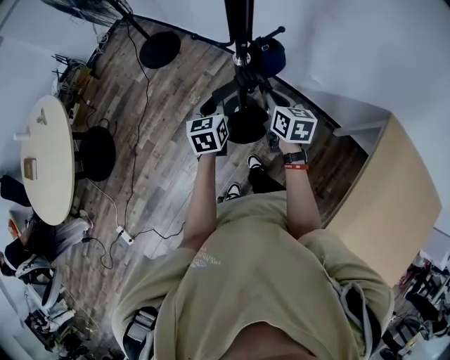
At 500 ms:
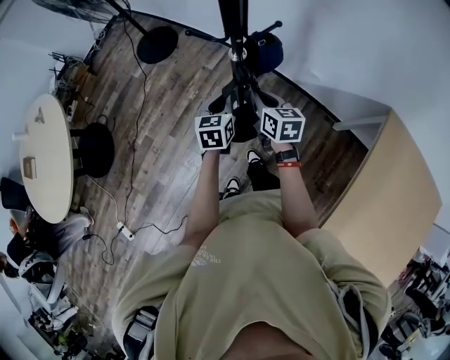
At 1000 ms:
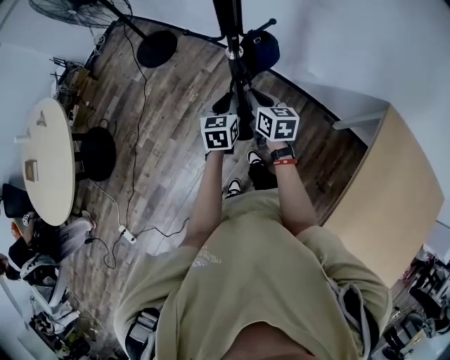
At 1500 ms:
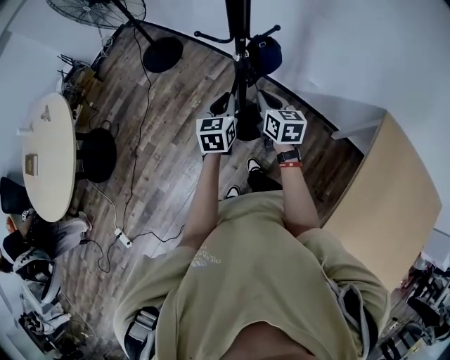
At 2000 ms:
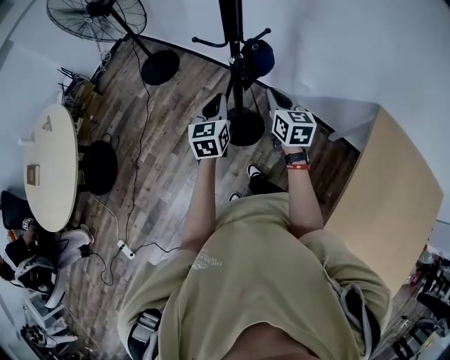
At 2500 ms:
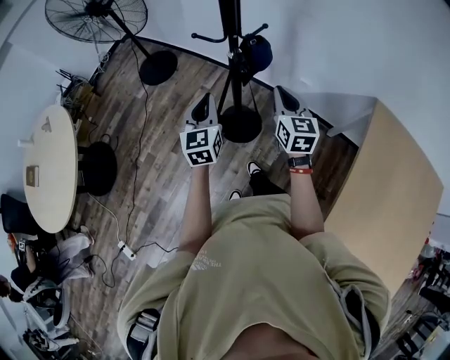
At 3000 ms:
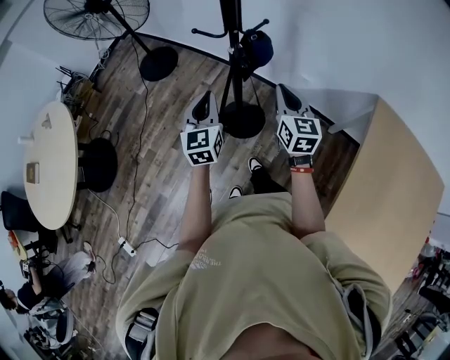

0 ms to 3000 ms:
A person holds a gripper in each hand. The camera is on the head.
0 ms to 1500 ms: The left gripper shifts by roughly 5 cm.
1500 ms to 3000 ms: The right gripper shifts about 15 cm upward, backward and to the right, and changes its angle by roughly 20 degrees. The left gripper is displaced upward, backward and to the left by about 15 cm.

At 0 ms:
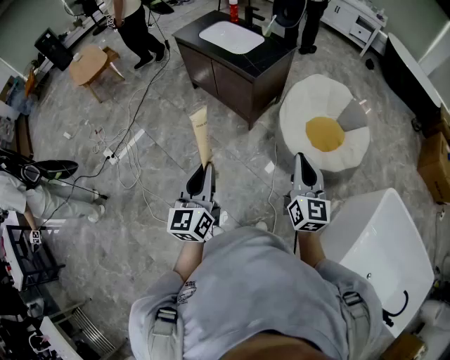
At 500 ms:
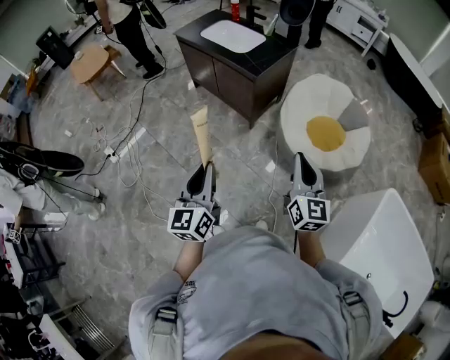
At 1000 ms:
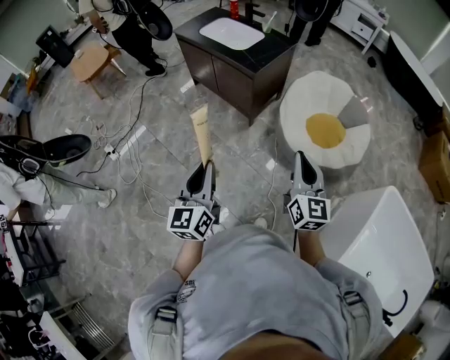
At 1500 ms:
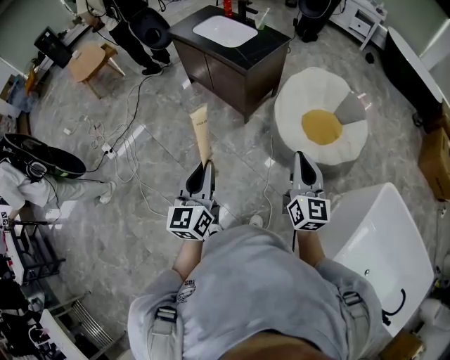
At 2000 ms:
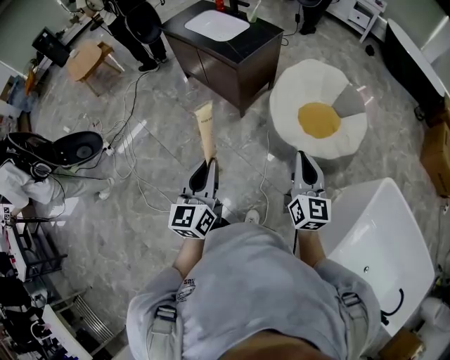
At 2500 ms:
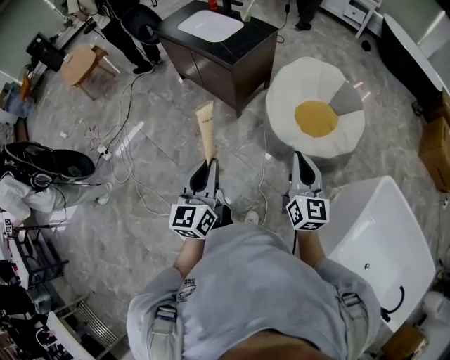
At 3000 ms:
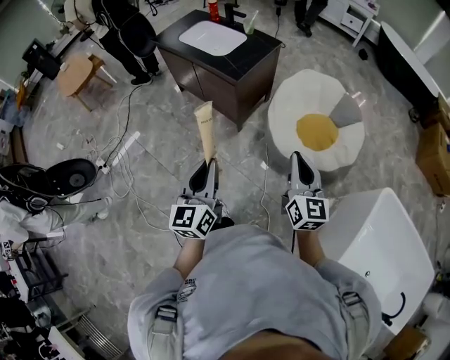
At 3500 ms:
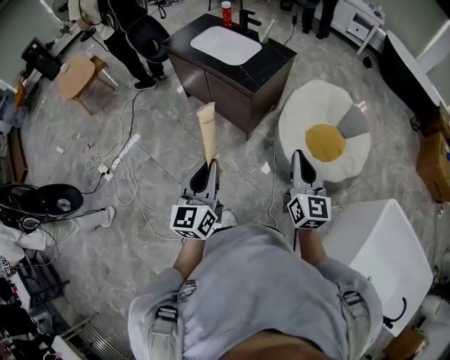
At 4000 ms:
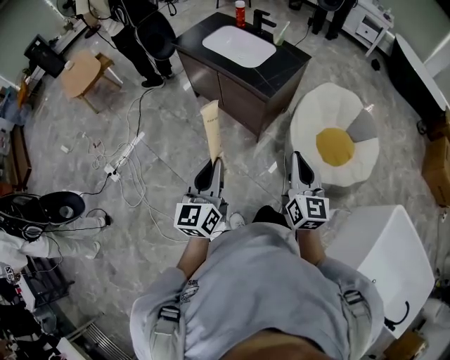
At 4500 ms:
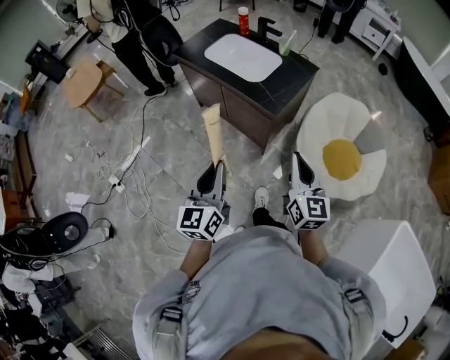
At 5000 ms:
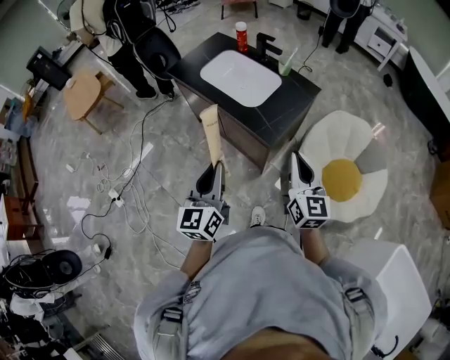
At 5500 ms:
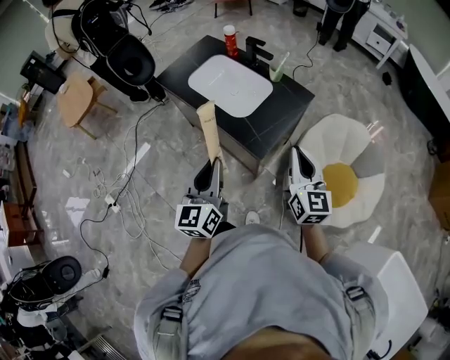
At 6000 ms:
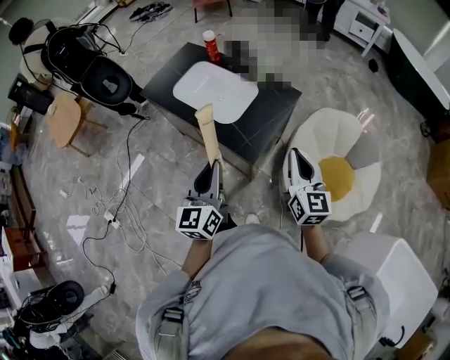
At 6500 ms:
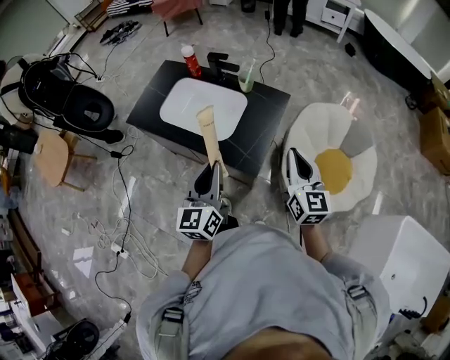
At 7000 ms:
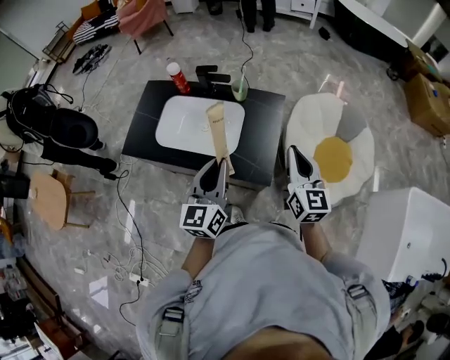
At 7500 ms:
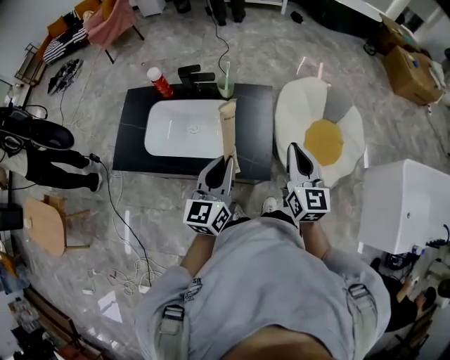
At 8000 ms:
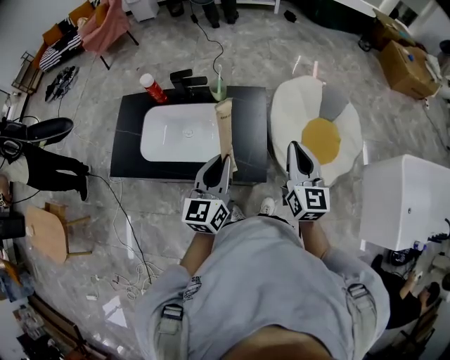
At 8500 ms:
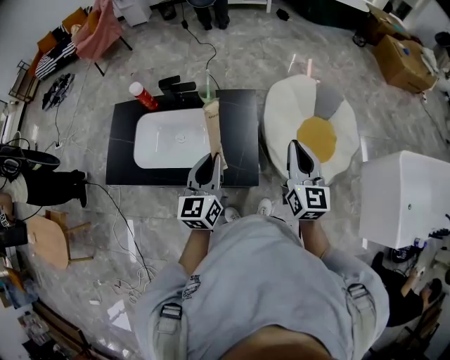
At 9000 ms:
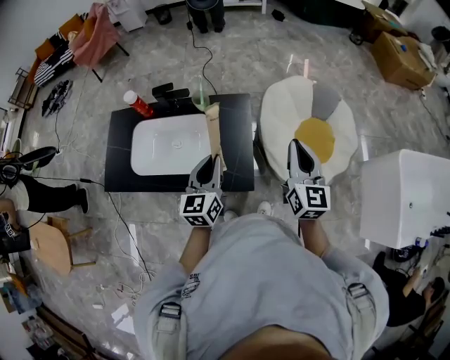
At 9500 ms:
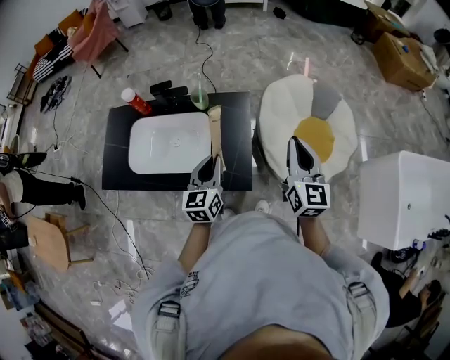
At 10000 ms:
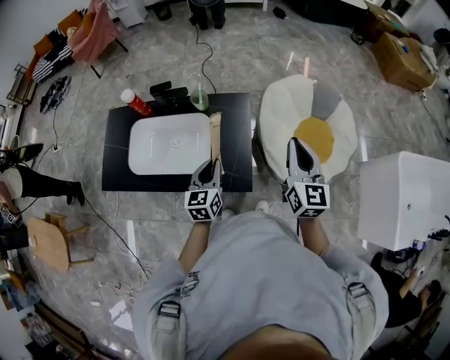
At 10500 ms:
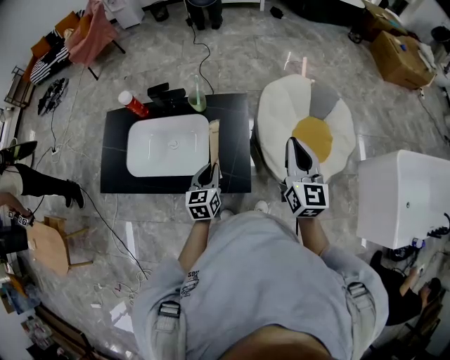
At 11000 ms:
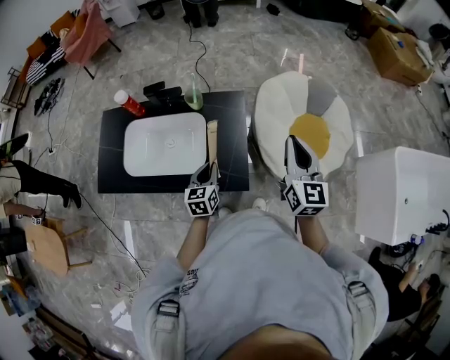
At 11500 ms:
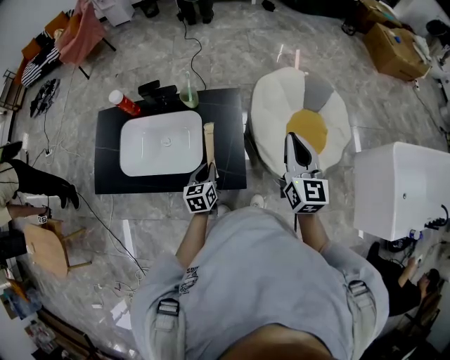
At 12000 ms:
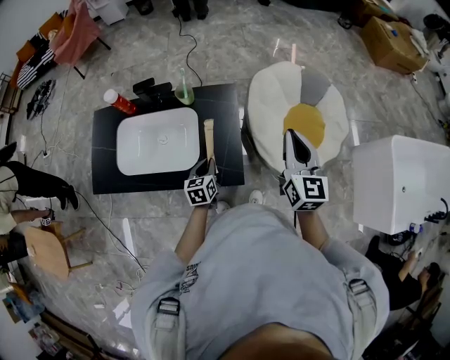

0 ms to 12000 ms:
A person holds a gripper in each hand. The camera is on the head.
0 ms to 2000 ms: The grippers both shift to the right by about 10 cm.
2000 ms to 4000 ms: The left gripper heads forward and to the left, covering approximately 30 cm. The right gripper moves to the left and forward, about 30 cm.
4000 ms to 6000 ms: Both grippers move forward, roughly 35 cm.
6000 ms to 8000 ms: The left gripper moves roughly 20 cm, and turns by roughly 40 degrees. Meanwhile the right gripper moves roughly 10 cm, and turns by some 30 degrees.
8000 ms to 10000 ms: The right gripper shifts some 10 cm to the right and forward; the left gripper heads downward and forward, covering approximately 15 cm.
10000 ms to 12000 ms: The left gripper heads downward, covering roughly 15 cm.

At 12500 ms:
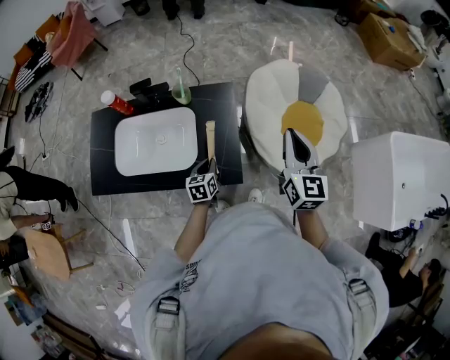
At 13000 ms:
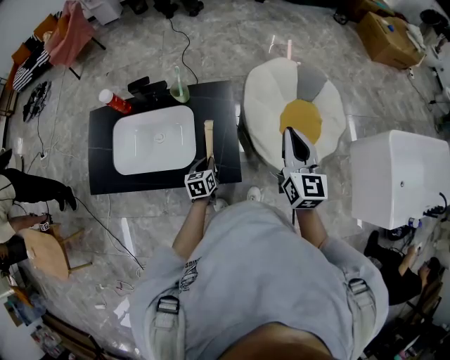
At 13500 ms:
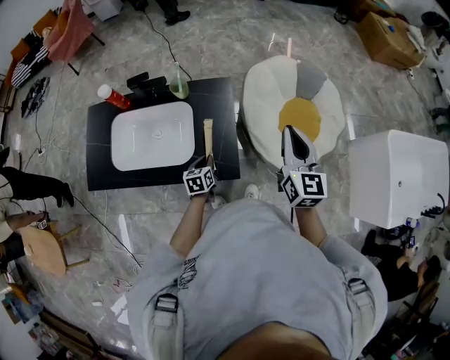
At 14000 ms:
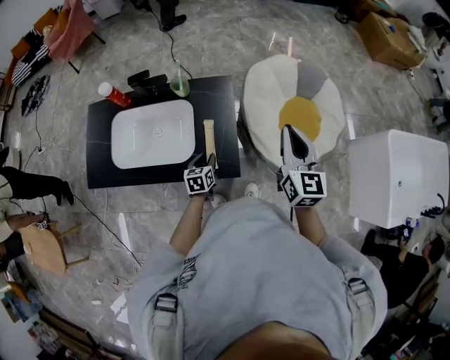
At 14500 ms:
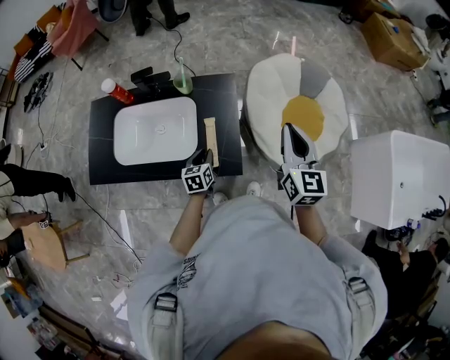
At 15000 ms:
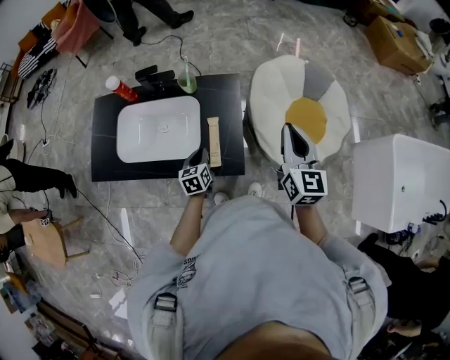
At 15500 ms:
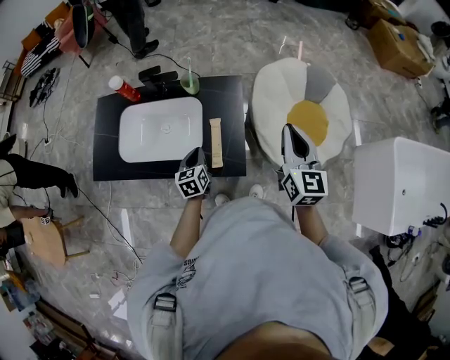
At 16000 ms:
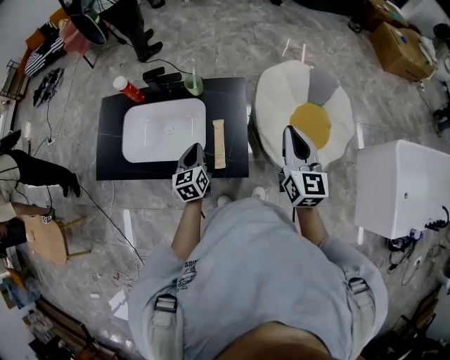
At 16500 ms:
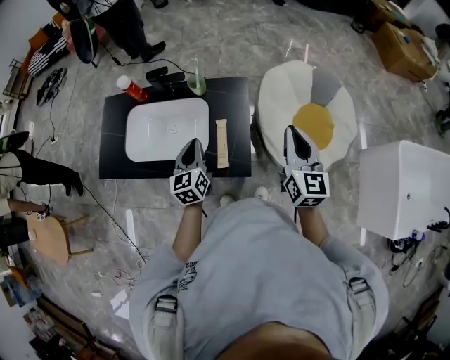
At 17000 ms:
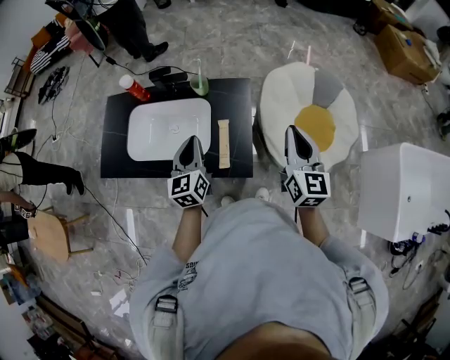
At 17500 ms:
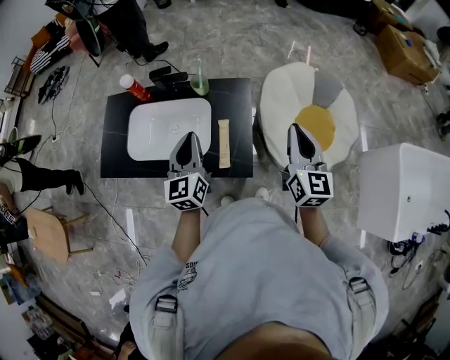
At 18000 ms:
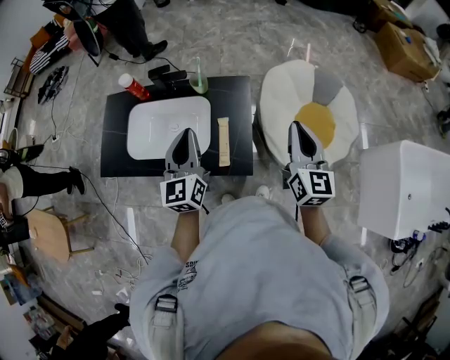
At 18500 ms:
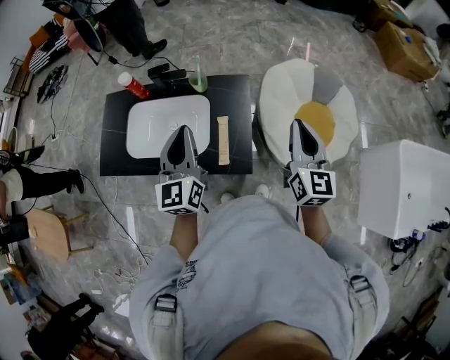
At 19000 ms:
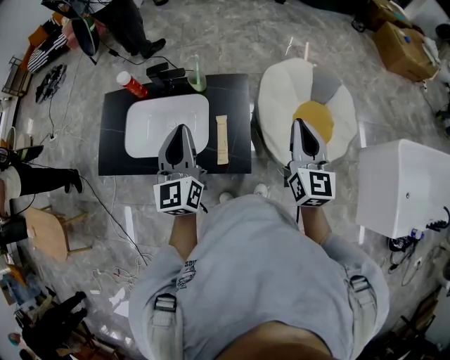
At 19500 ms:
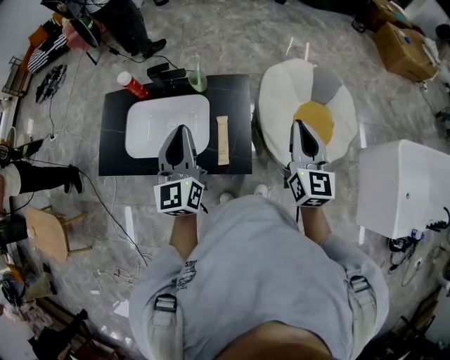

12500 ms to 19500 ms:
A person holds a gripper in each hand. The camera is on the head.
12500 ms to 14500 ms: There are only small adjustments of the grippers.
14500 ms to 16000 ms: The left gripper is displaced upward by approximately 10 cm.
16000 ms to 17500 ms: The left gripper travels upward by approximately 15 cm, and swivels about 20 degrees.
17500 ms to 19500 ms: The left gripper shifts some 10 cm upward.

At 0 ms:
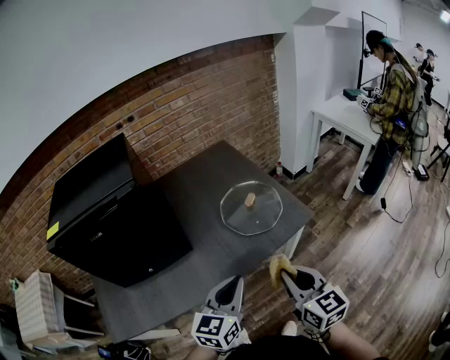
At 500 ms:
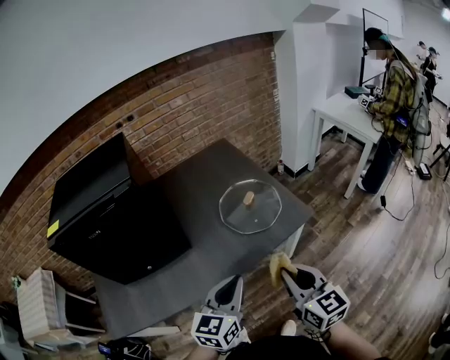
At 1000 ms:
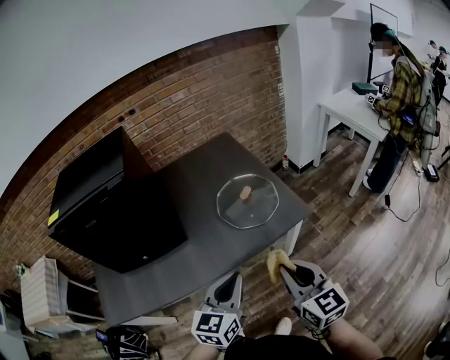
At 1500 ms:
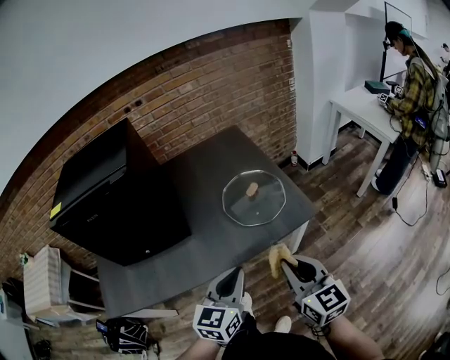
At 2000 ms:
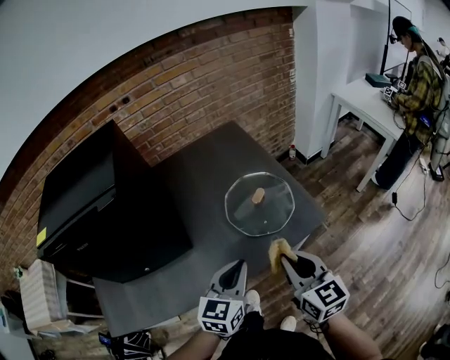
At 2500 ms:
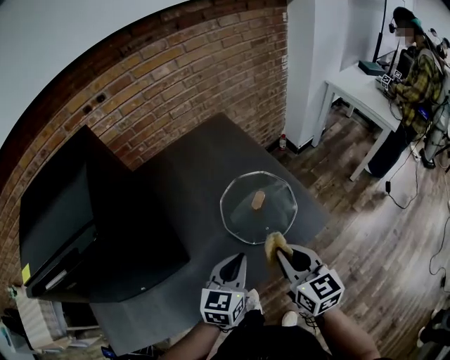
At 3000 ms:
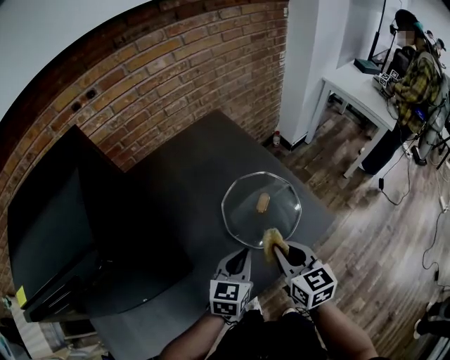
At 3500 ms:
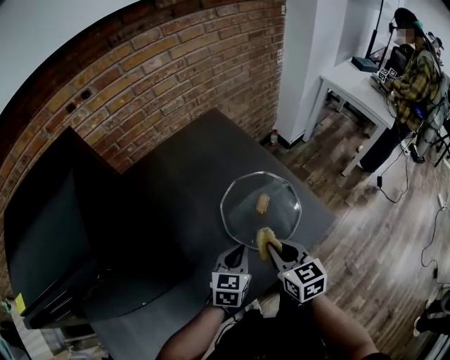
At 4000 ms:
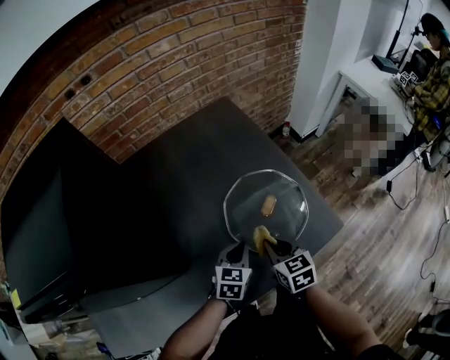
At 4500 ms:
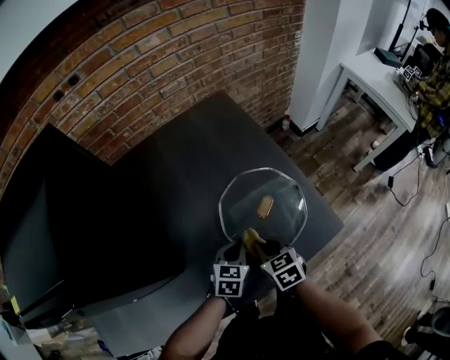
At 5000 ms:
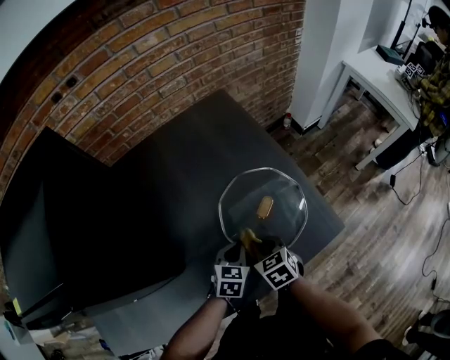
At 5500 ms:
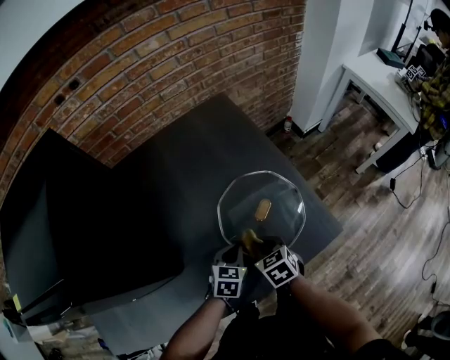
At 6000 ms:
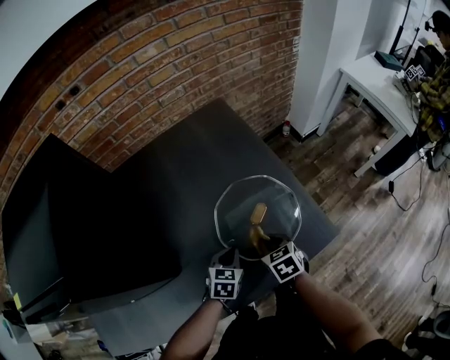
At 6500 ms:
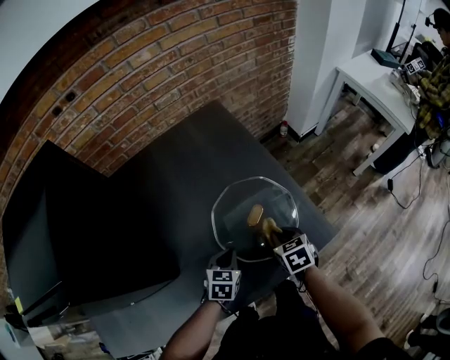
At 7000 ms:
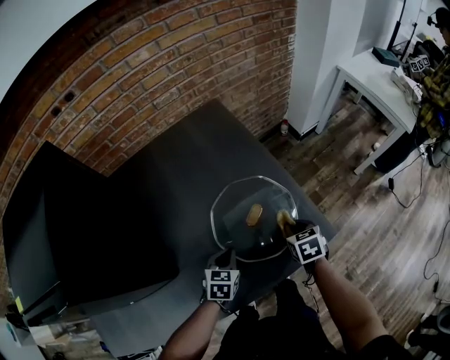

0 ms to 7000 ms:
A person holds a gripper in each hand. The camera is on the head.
0 ms to 2000 ms: Both grippers travel together forward, some 10 cm.
2000 ms to 3500 ms: The right gripper moves forward, downward and to the left, approximately 20 cm. The left gripper heads forward and downward, covering some 20 cm.
3500 ms to 5000 ms: The left gripper heads downward, covering approximately 10 cm. Meanwhile the right gripper heads downward and forward, covering approximately 15 cm, and changes its angle by some 30 degrees.
5000 ms to 7000 ms: The right gripper heads to the right, covering about 15 cm.
